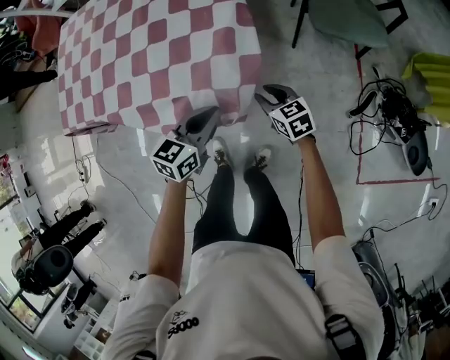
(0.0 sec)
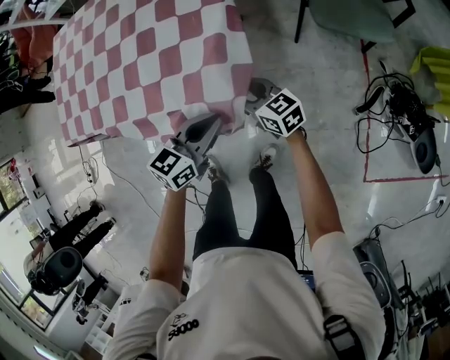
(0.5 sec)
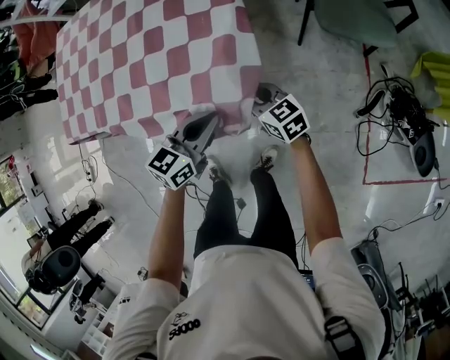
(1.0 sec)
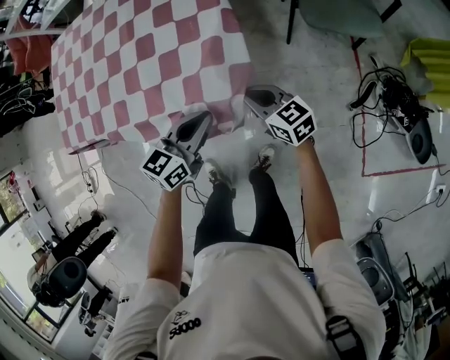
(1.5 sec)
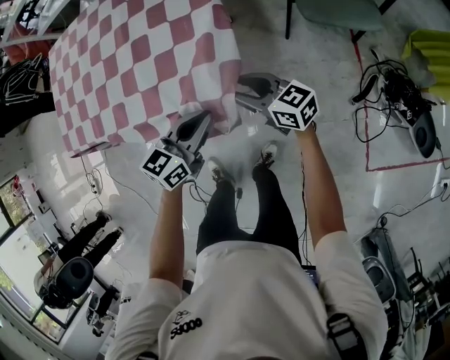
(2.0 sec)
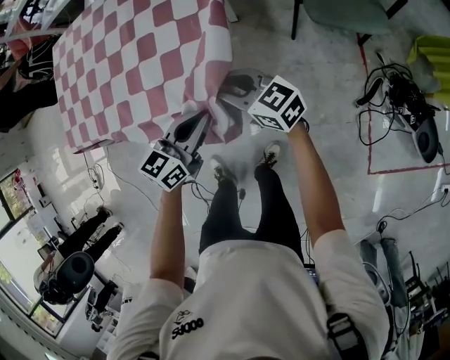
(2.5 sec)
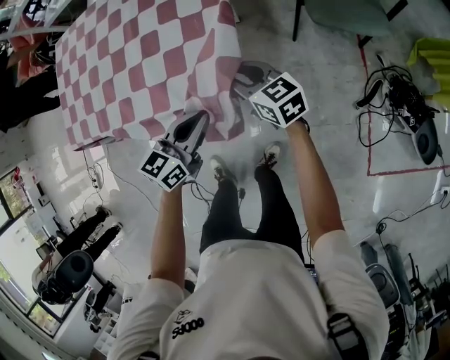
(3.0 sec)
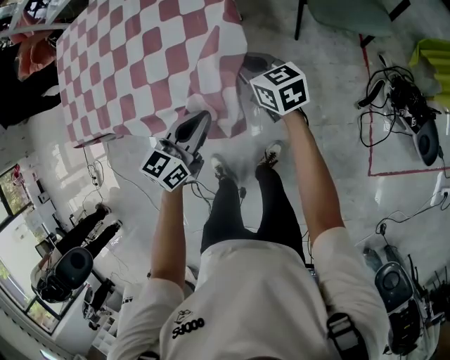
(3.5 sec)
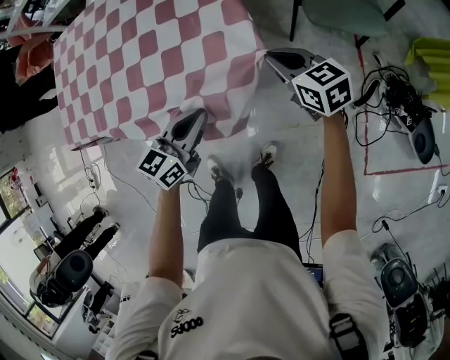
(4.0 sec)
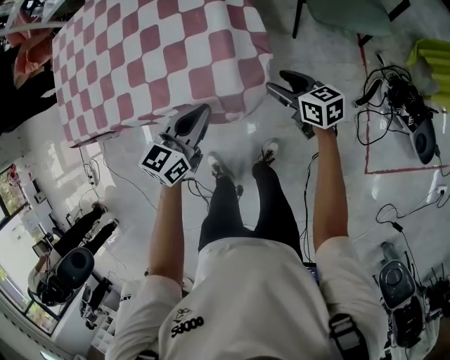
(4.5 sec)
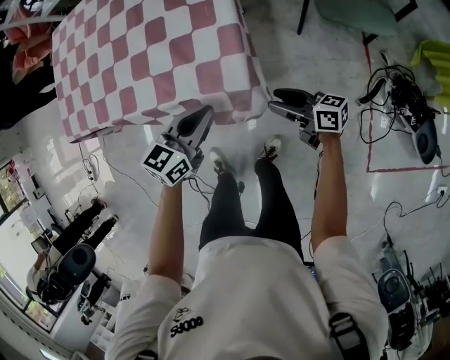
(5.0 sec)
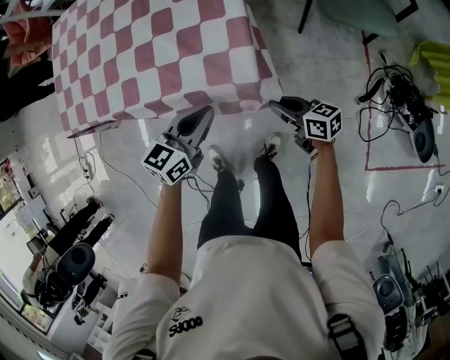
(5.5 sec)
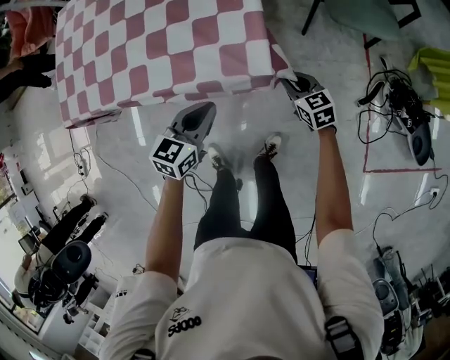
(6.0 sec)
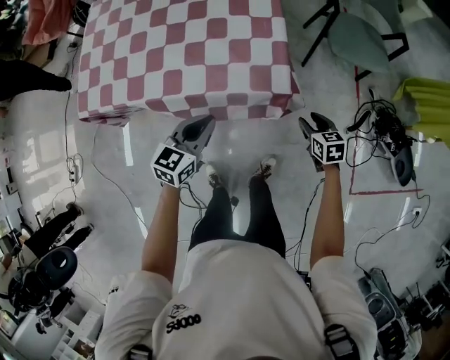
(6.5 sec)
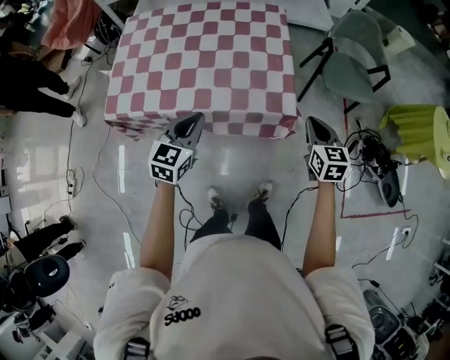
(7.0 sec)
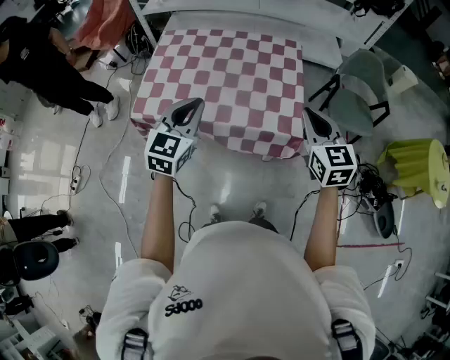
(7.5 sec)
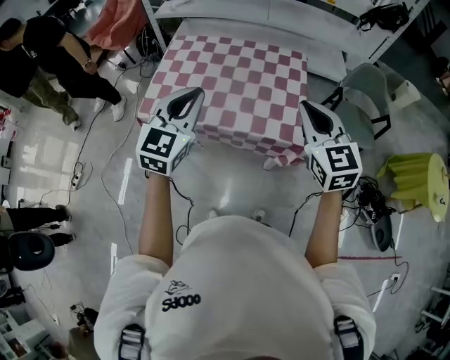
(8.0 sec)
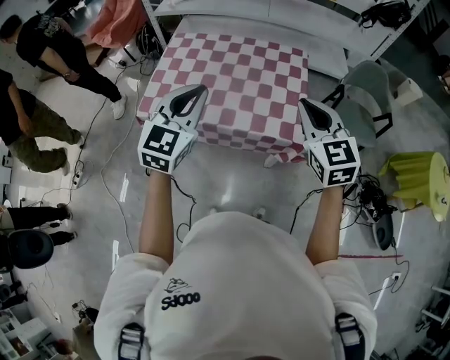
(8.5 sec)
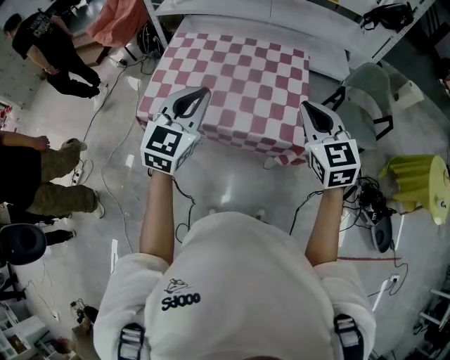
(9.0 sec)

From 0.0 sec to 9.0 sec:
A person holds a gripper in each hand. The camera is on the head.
From 0.0 sec to 2.0 sec: The right gripper moves upward, about 10 cm, swivels approximately 30 degrees, and closes, then reopens.
From 2.0 sec to 4.5 sec: The right gripper heads to the right and downward, covering some 10 cm, rotates approximately 20 degrees, and closes, then reopens.
From 4.5 sec to 7.0 sec: The right gripper heads upward, to the left and backward, covering roughly 25 cm, changes its angle by roughly 40 degrees, and closes; the left gripper goes some 30 cm to the left and upward, and changes its angle by some 20 degrees.
From 7.0 sec to 9.0 sec: The left gripper travels upward by approximately 25 cm, and rotates approximately 20 degrees. The right gripper travels upward and to the left by approximately 30 cm, and swivels about 30 degrees.

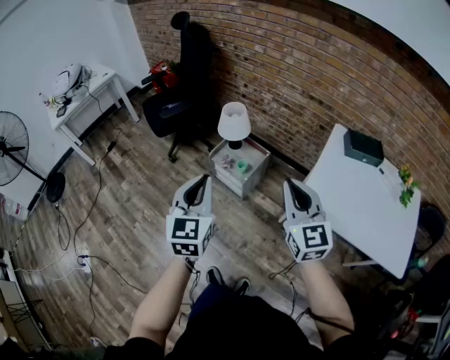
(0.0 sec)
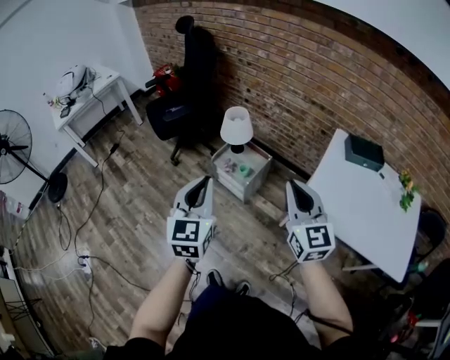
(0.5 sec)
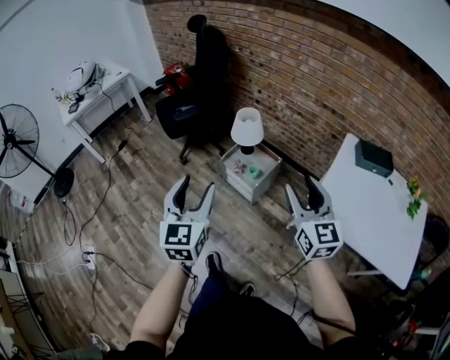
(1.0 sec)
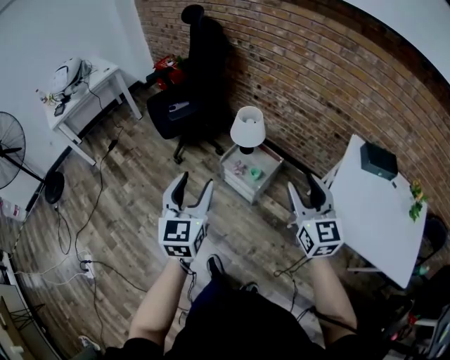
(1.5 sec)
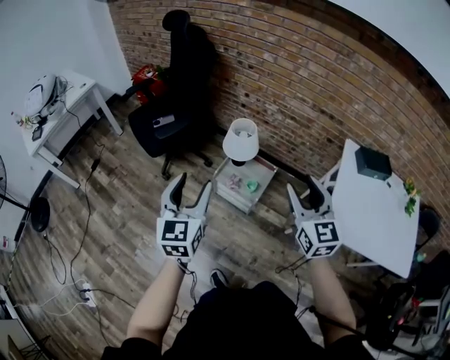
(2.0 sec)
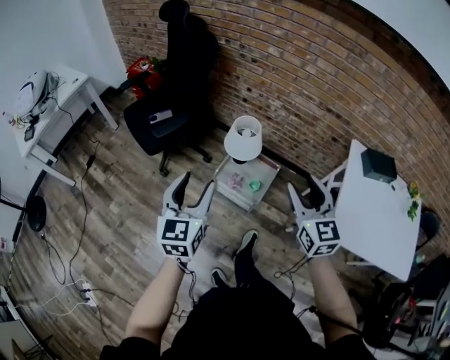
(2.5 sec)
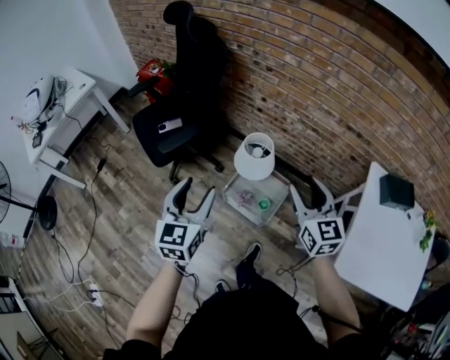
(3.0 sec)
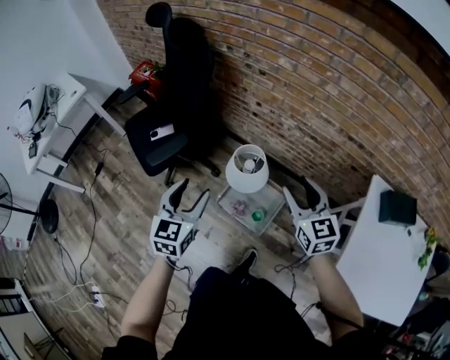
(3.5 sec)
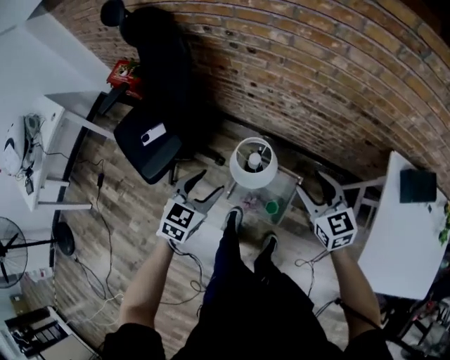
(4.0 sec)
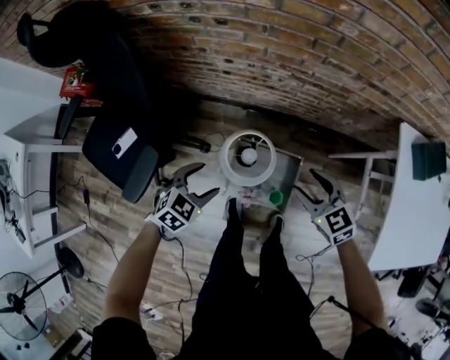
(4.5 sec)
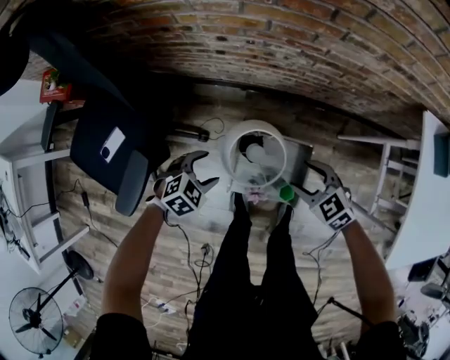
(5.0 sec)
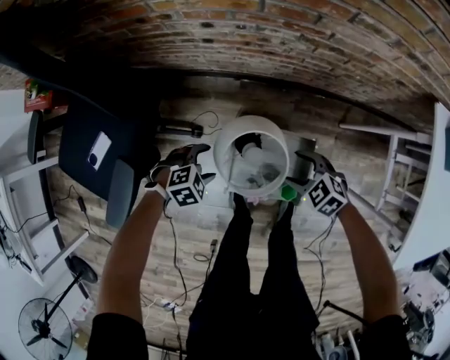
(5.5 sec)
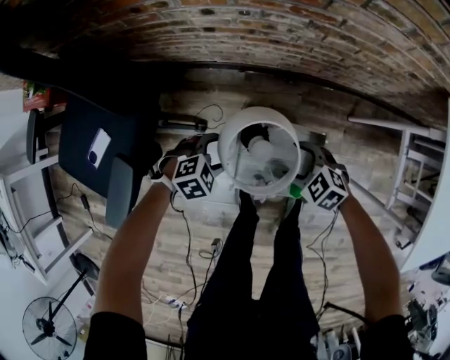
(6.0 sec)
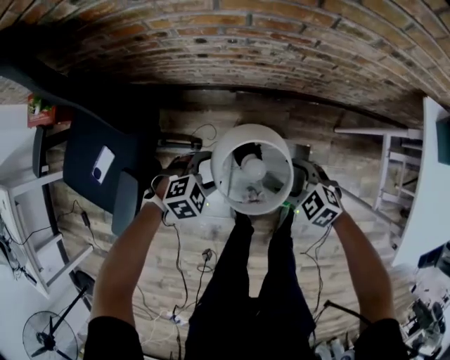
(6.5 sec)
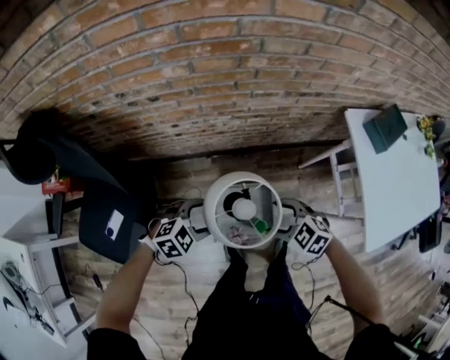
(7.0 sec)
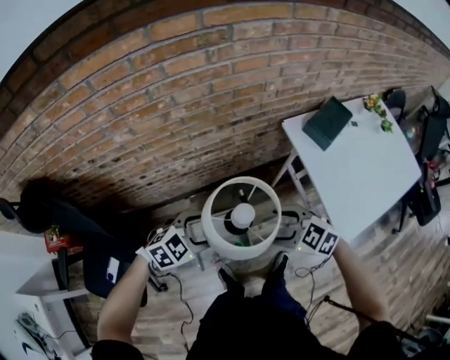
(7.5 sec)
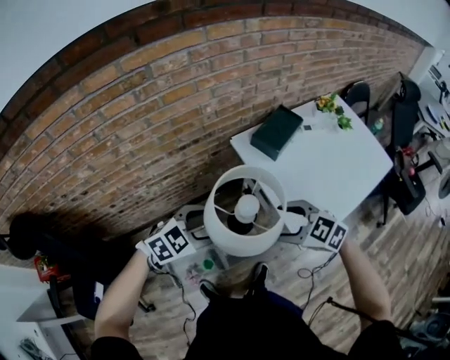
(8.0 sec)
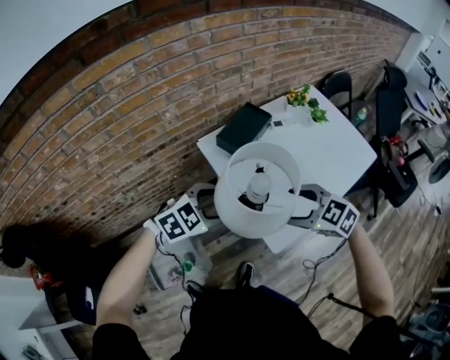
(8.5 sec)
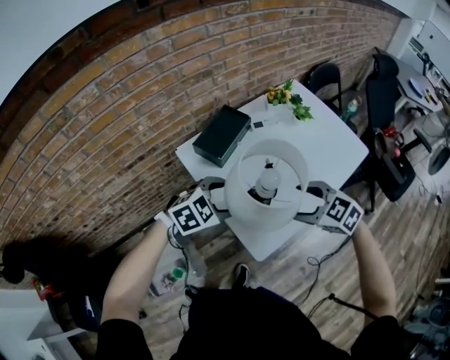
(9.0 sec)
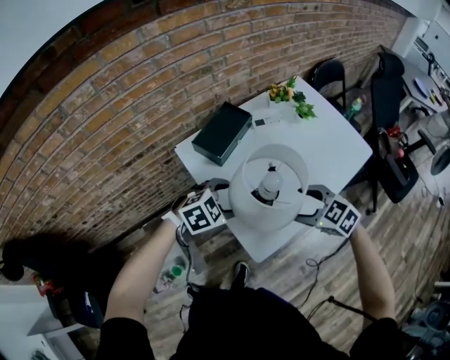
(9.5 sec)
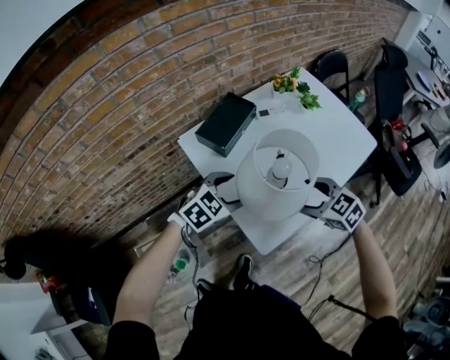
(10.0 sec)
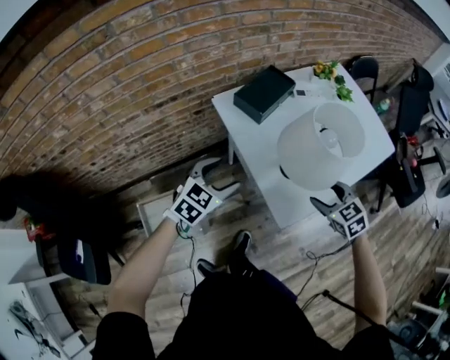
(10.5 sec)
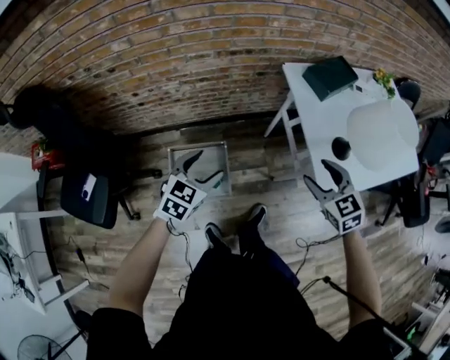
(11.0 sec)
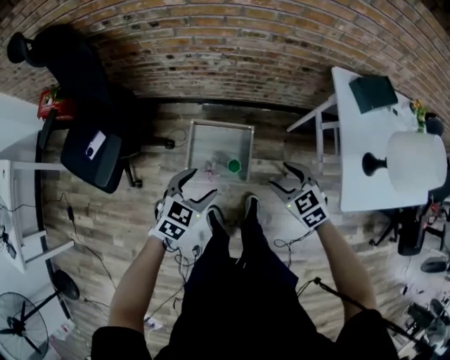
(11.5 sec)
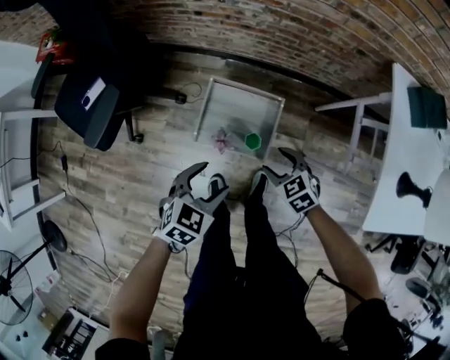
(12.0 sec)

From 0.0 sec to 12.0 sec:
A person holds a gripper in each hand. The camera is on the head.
From 0.0 sec to 2.0 sec: The two grippers go approximately 25 cm forward and to the left. The right gripper opens; the left gripper opens up.
From 2.0 sec to 4.0 sec: The two grippers go approximately 40 cm forward and downward. The left gripper turns by some 40 degrees.
From 4.0 sec to 6.0 sec: Both grippers travel together downward, some 40 cm. The right gripper angles its fingers downward, by about 30 degrees; the left gripper tilts its fingers roughly 30 degrees downward.
From 6.0 sec to 8.0 sec: Both grippers are carried some 40 cm. Both grippers move upward, about 50 cm. The left gripper swivels some 40 degrees. Meanwhile the right gripper rotates some 30 degrees.
From 8.0 sec to 10.0 sec: The left gripper moves about 35 cm. The right gripper moves some 35 cm, and turns by approximately 20 degrees.
From 10.0 sec to 12.0 sec: The two grippers travel together, some 60 cm. The left gripper turns by some 60 degrees, while the right gripper turns by some 40 degrees.

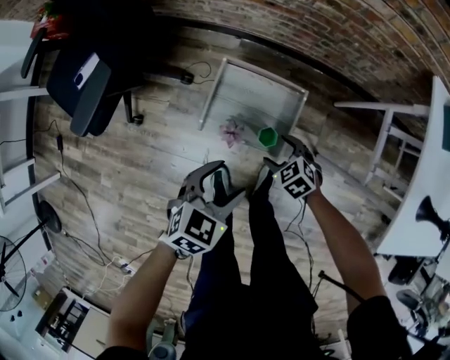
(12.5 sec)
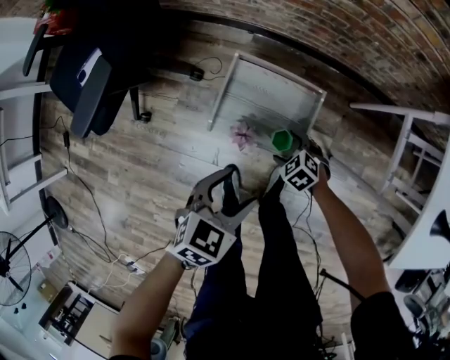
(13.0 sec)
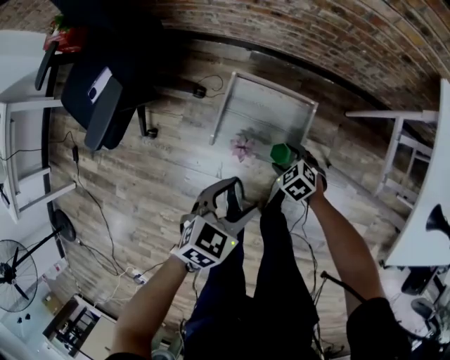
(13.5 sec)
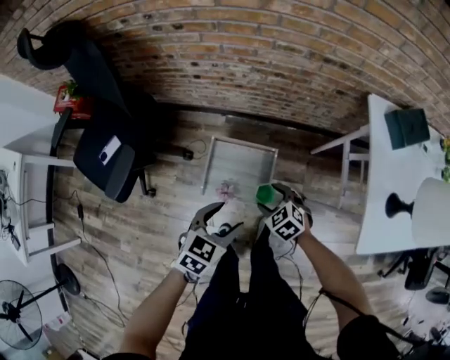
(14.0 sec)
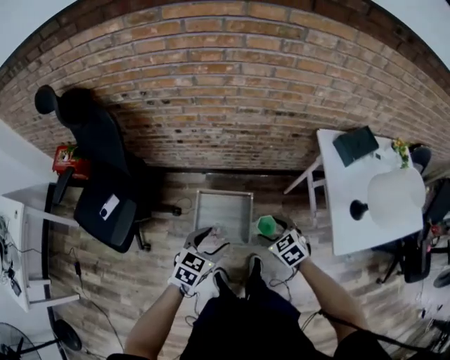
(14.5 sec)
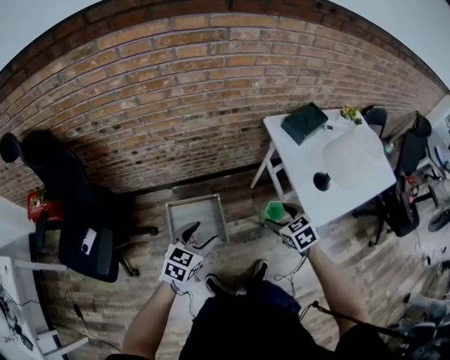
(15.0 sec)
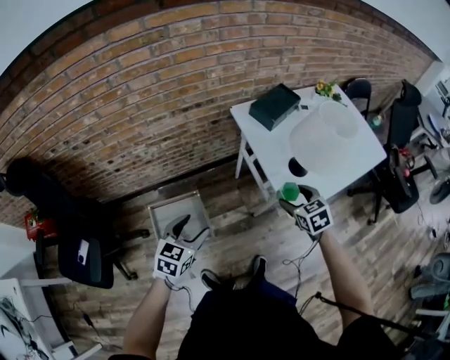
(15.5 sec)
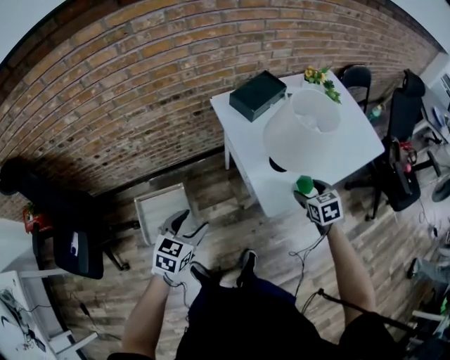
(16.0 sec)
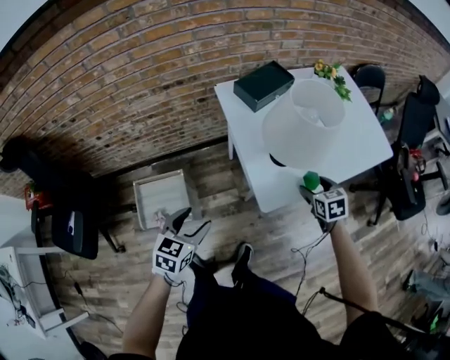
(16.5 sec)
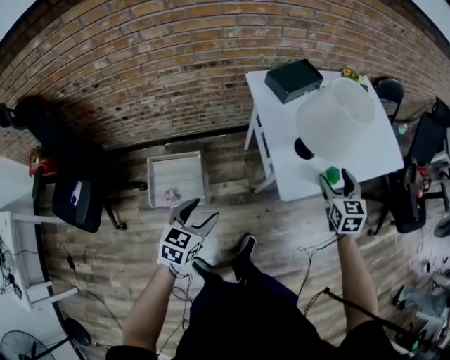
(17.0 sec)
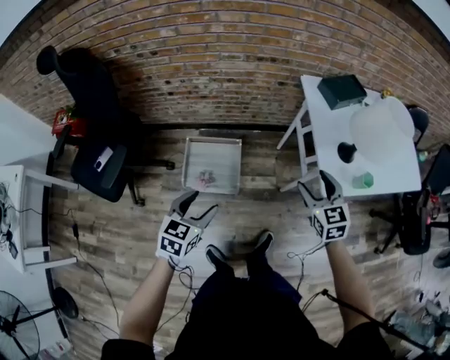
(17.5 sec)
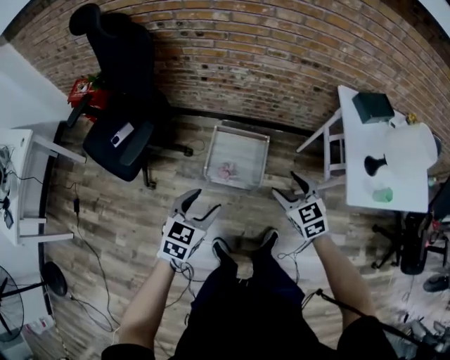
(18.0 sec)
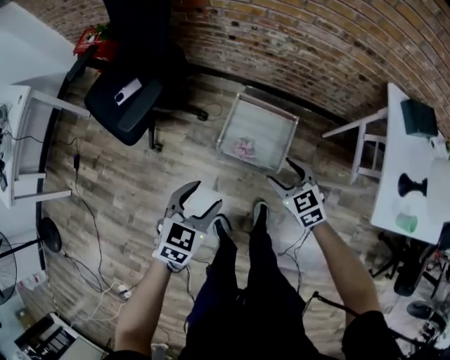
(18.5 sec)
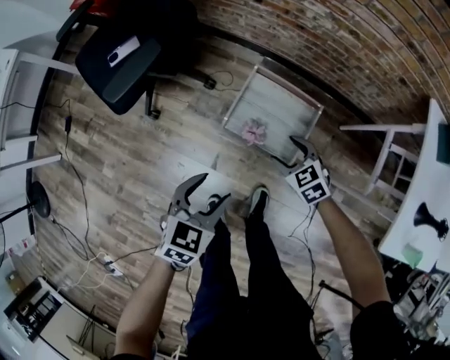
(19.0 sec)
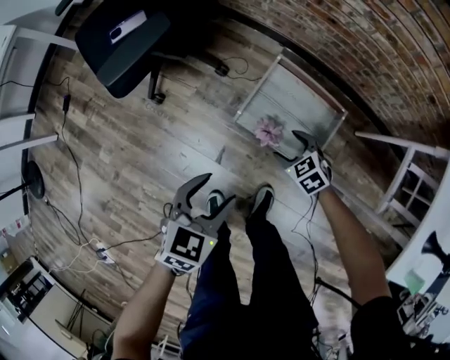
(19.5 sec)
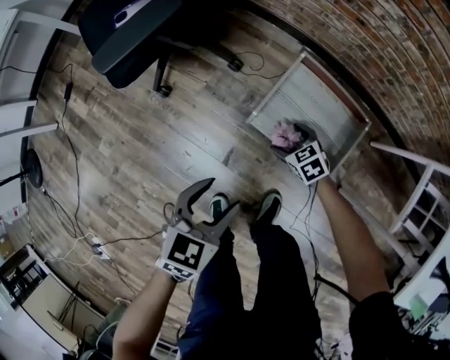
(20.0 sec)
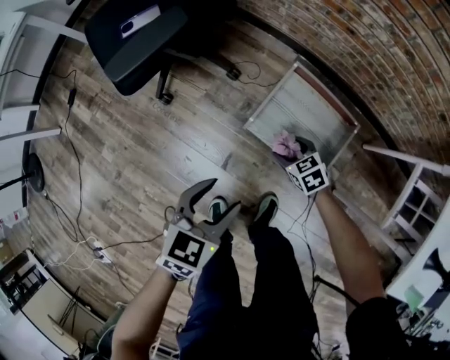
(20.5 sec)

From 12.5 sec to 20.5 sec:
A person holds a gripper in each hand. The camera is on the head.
From 12.5 sec to 14.5 sec: The right gripper heads upward, covering about 35 cm, and changes its angle by roughly 20 degrees; the left gripper is displaced upward by approximately 25 cm.
From 14.5 sec to 16.5 sec: The right gripper moves about 10 cm upward and comes back, and turns by about 40 degrees, while the left gripper changes place by some 35 cm.
From 16.5 sec to 18.5 sec: The two grippers travel together, about 60 cm. The right gripper rotates approximately 60 degrees. The left gripper turns by some 30 degrees.
From 18.5 sec to 20.5 sec: The right gripper is displaced downward by some 35 cm, and swivels approximately 20 degrees. Meanwhile the left gripper goes roughly 20 cm downward.
